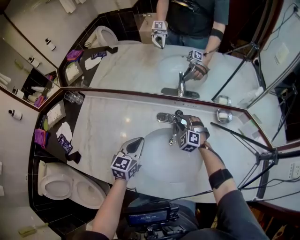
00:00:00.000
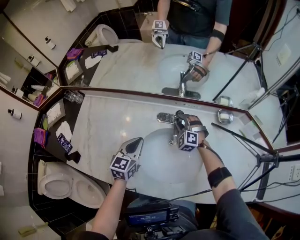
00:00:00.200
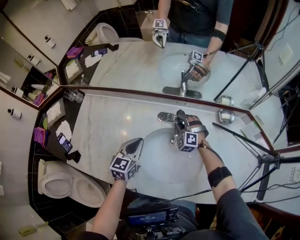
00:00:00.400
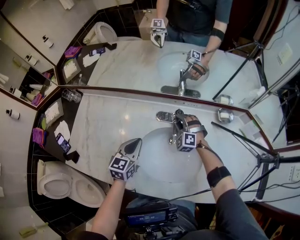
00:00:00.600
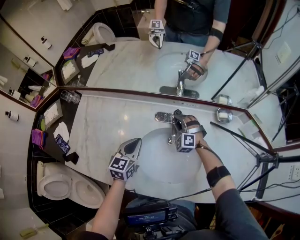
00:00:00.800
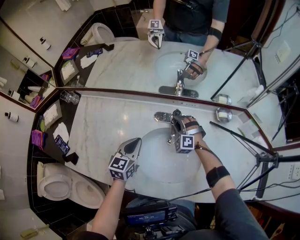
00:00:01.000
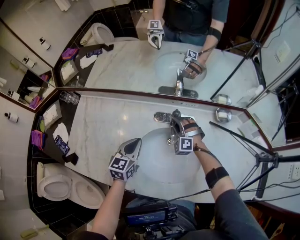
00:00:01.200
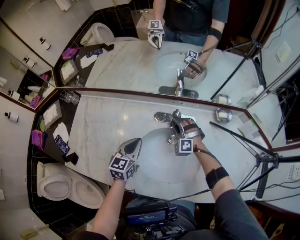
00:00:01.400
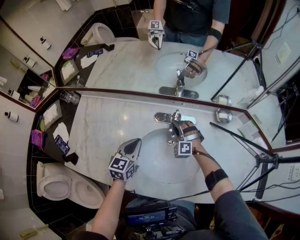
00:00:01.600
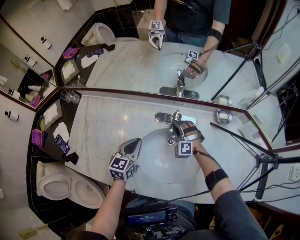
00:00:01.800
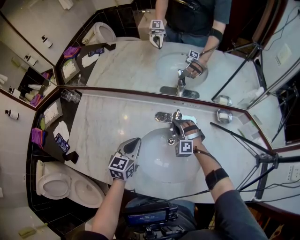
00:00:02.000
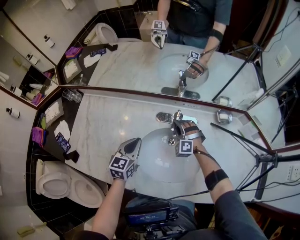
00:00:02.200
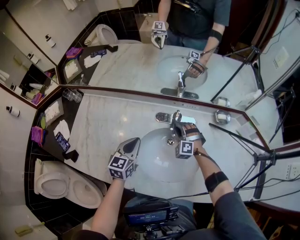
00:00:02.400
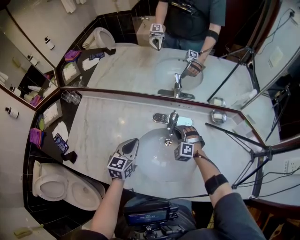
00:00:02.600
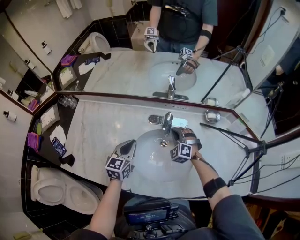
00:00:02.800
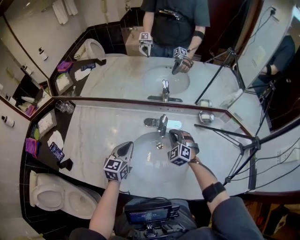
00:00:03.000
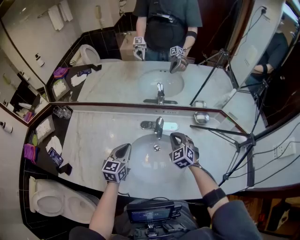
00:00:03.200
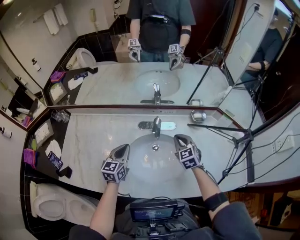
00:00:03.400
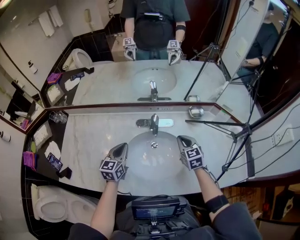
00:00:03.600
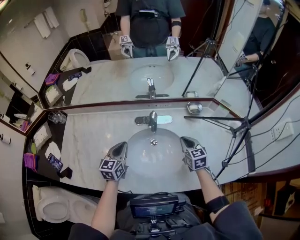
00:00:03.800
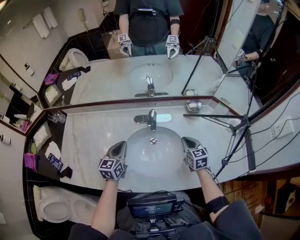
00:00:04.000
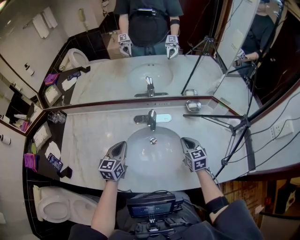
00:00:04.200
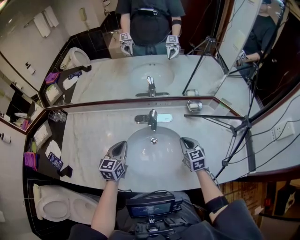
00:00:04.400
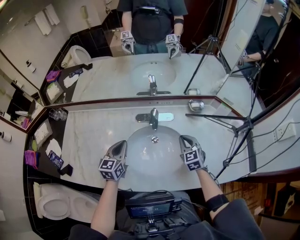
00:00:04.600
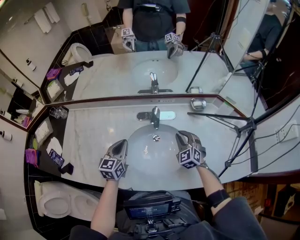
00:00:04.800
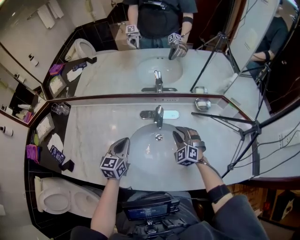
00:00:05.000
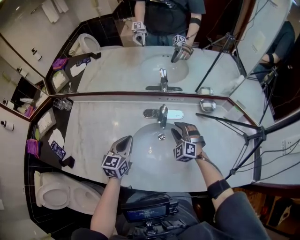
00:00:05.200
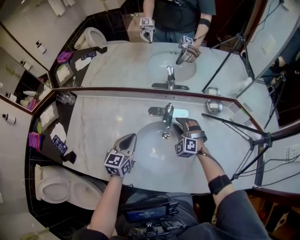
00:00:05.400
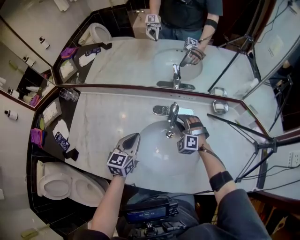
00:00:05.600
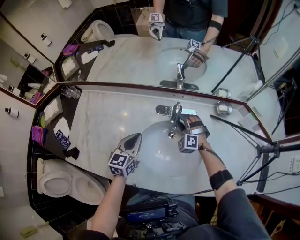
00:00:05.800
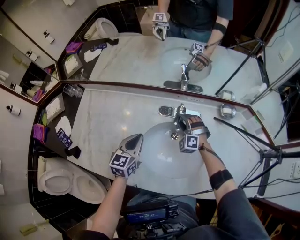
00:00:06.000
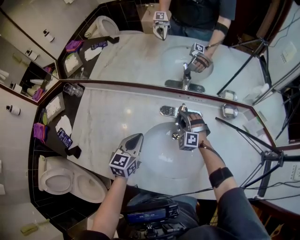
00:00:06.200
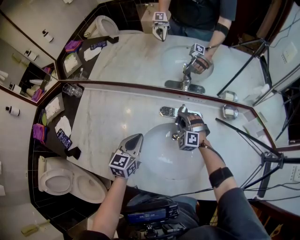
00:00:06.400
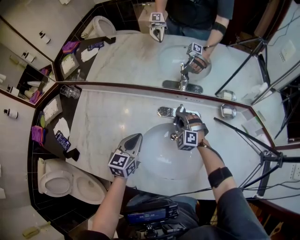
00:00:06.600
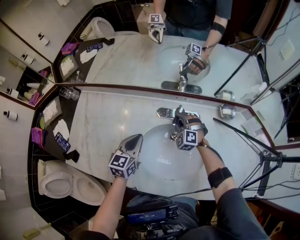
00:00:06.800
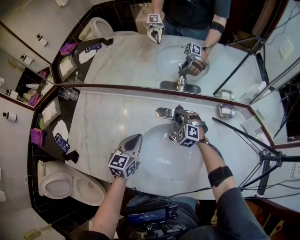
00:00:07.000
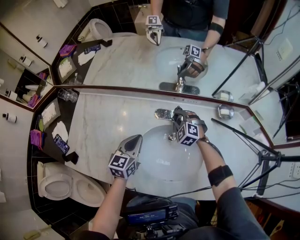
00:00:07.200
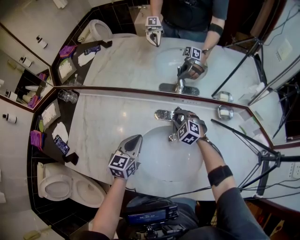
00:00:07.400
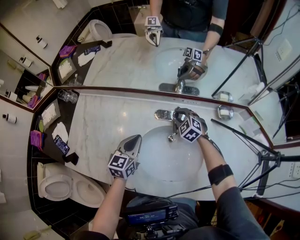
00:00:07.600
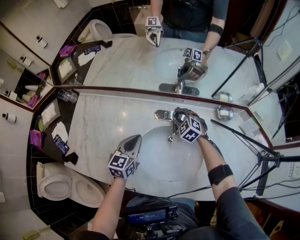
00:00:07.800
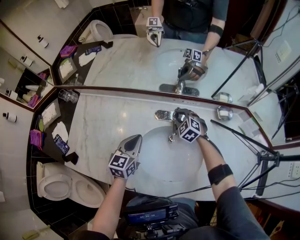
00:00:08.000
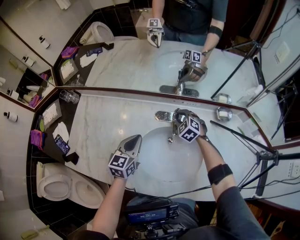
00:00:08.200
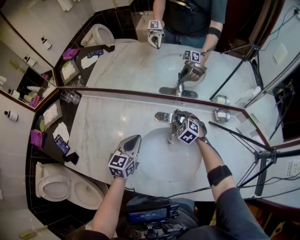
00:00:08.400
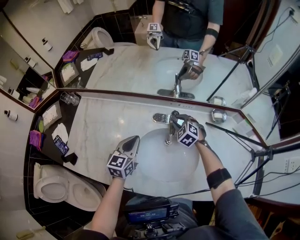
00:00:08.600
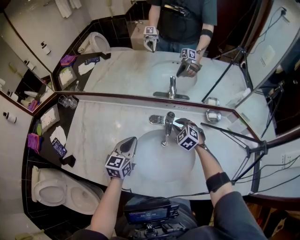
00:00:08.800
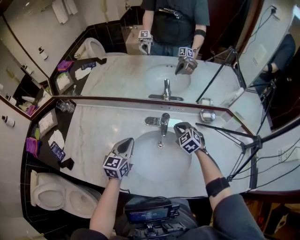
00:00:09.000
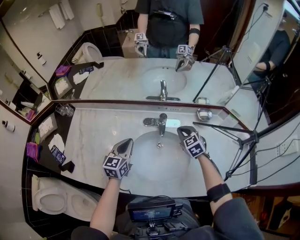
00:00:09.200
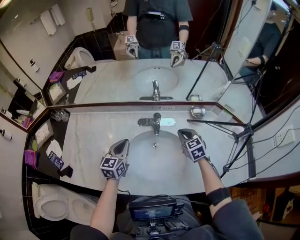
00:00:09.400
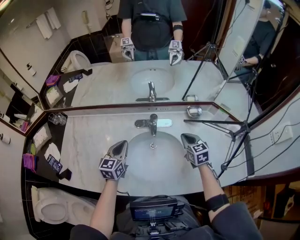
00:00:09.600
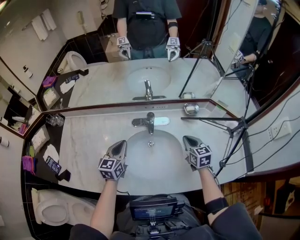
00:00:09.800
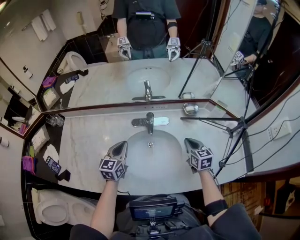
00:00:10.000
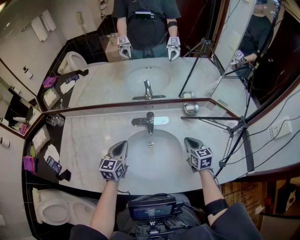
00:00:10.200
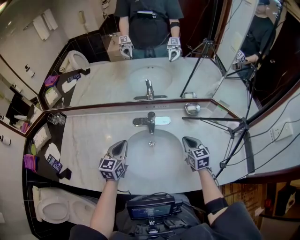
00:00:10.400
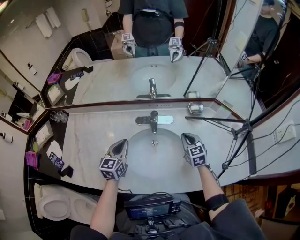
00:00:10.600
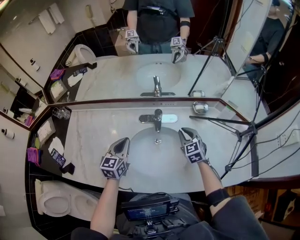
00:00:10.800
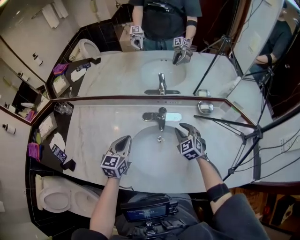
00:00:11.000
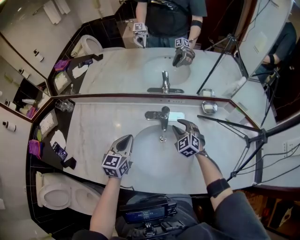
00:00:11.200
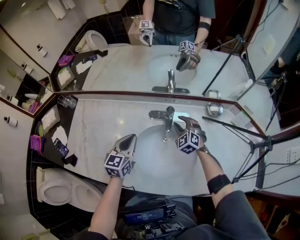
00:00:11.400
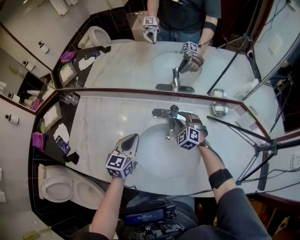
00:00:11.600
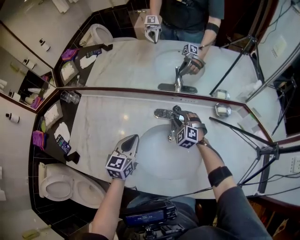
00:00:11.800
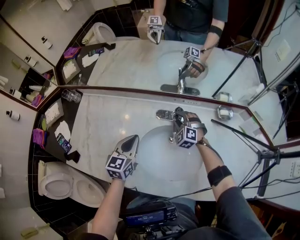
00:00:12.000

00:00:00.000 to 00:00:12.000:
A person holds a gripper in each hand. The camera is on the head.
00:00:00.000 to 00:00:01.600: The grippers make only small movements.
00:00:01.600 to 00:00:03.000: The right gripper shifts approximately 10 cm upward and backward, rotates roughly 30 degrees, and closes its fingers.
00:00:03.000 to 00:00:04.400: The right gripper heads to the right and backward, covering about 15 cm, and rolls clockwise, seen from behind, by approximately 50 degrees.
00:00:04.400 to 00:00:06.000: The right gripper goes roughly 25 cm to the left, forward and downward, rolls counterclockwise, seen from behind, by about 70 degrees, and opens its fingers.
00:00:06.000 to 00:00:07.600: The right gripper rotates some 30 degrees, and closes.
00:00:07.600 to 00:00:09.000: The left gripper ends up about 5 cm from where it was. Meanwhile the right gripper heads backward, upward and to the right, covering roughly 10 cm, and closes its fingers.
00:00:09.000 to 00:00:10.400: The right gripper travels to the right and backward by roughly 15 cm, and changes its angle by approximately 40 degrees.
00:00:10.400 to 00:00:12.000: The left gripper ends up some 5 cm from where it was. Meanwhile the right gripper is displaced to the left, forward and downward by about 25 cm, rotates around the line of its fingers by some 60 degrees, counterclockwise from behind, and opens its fingers.

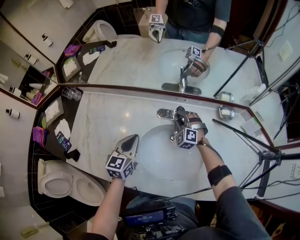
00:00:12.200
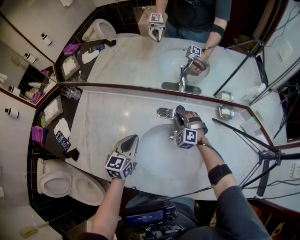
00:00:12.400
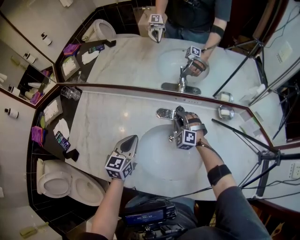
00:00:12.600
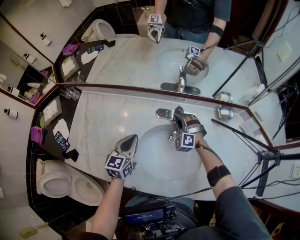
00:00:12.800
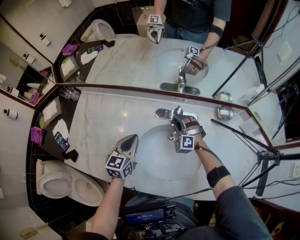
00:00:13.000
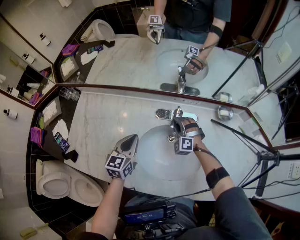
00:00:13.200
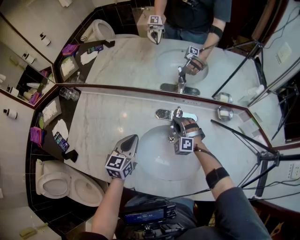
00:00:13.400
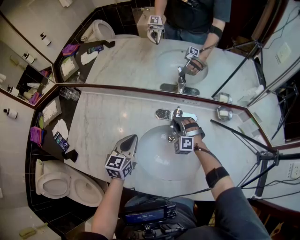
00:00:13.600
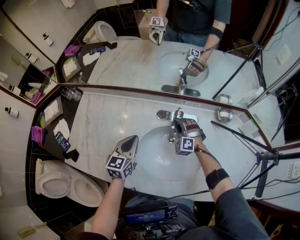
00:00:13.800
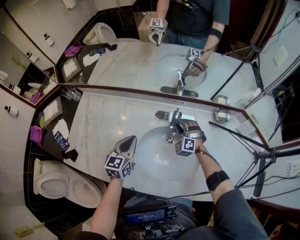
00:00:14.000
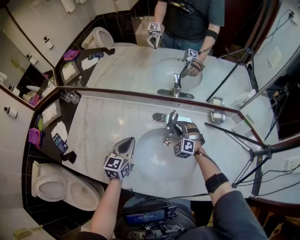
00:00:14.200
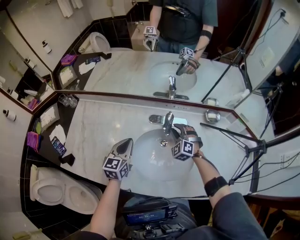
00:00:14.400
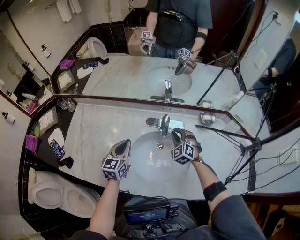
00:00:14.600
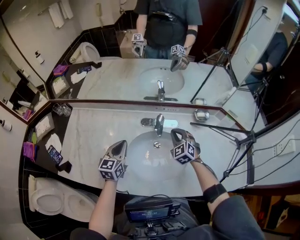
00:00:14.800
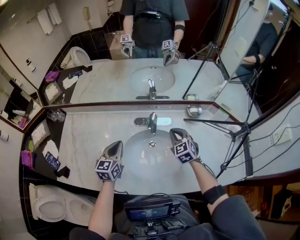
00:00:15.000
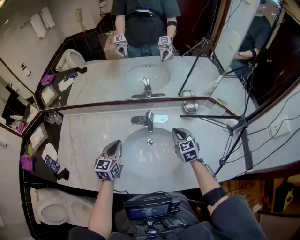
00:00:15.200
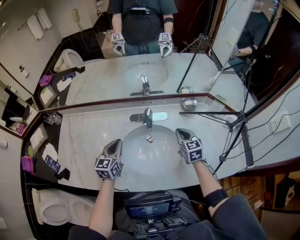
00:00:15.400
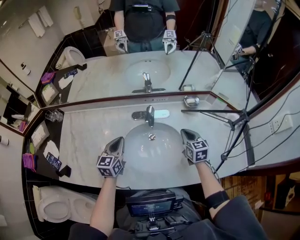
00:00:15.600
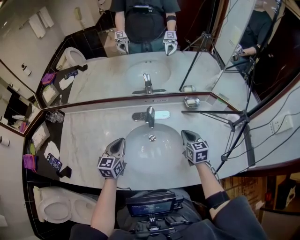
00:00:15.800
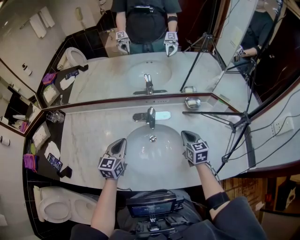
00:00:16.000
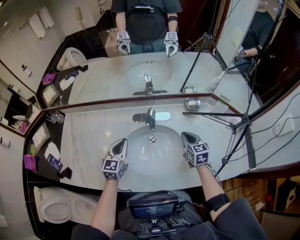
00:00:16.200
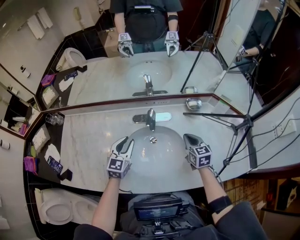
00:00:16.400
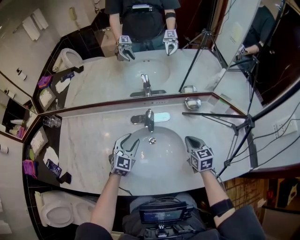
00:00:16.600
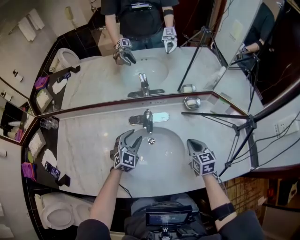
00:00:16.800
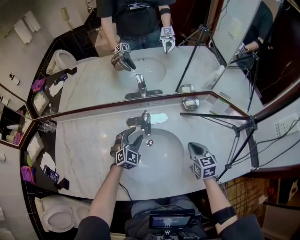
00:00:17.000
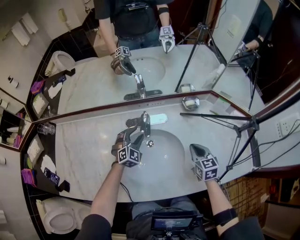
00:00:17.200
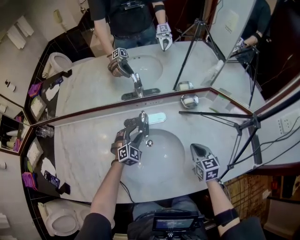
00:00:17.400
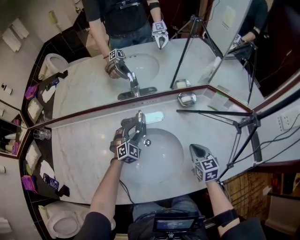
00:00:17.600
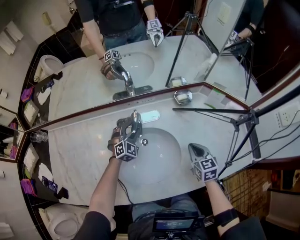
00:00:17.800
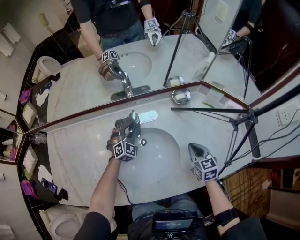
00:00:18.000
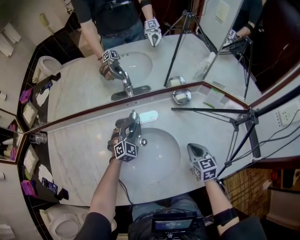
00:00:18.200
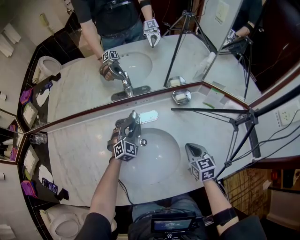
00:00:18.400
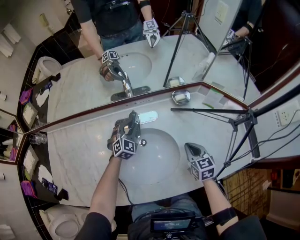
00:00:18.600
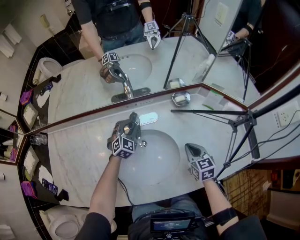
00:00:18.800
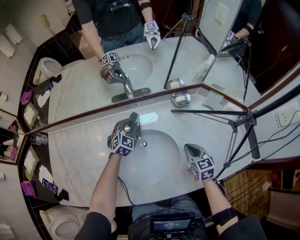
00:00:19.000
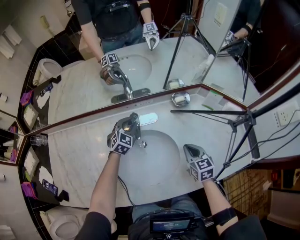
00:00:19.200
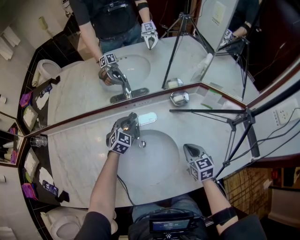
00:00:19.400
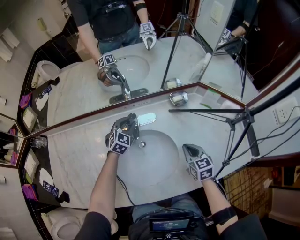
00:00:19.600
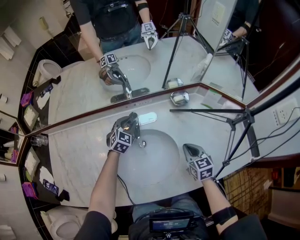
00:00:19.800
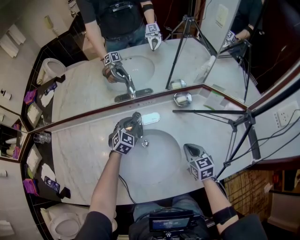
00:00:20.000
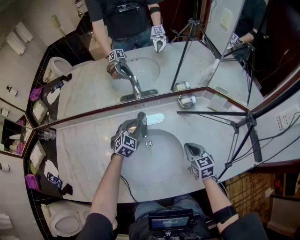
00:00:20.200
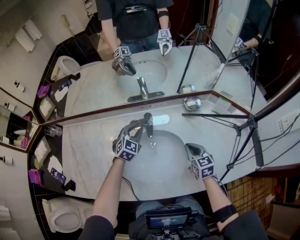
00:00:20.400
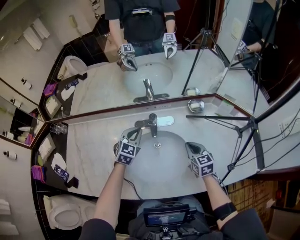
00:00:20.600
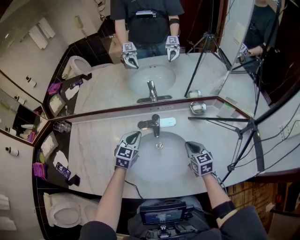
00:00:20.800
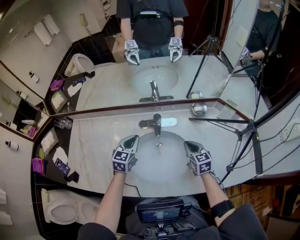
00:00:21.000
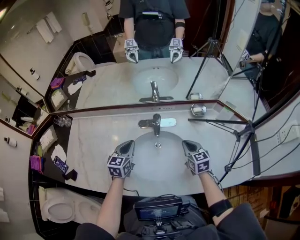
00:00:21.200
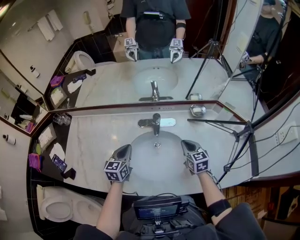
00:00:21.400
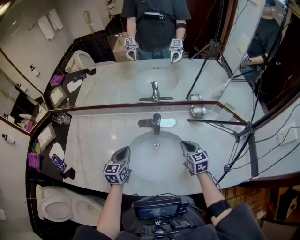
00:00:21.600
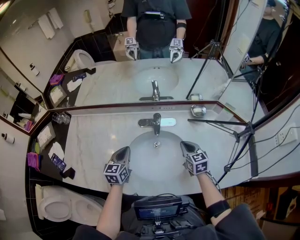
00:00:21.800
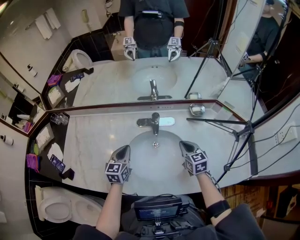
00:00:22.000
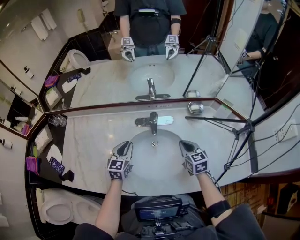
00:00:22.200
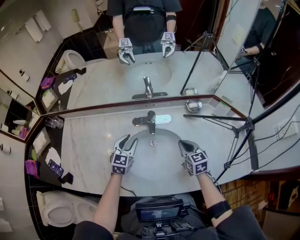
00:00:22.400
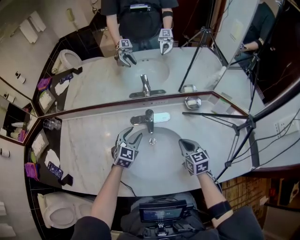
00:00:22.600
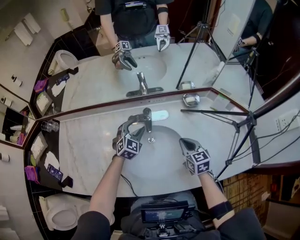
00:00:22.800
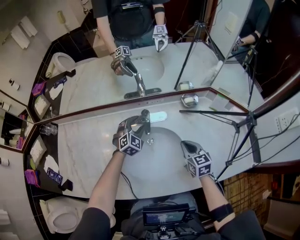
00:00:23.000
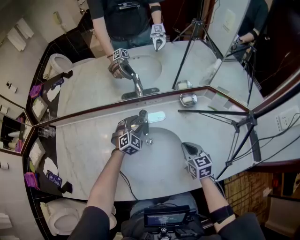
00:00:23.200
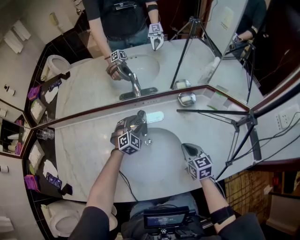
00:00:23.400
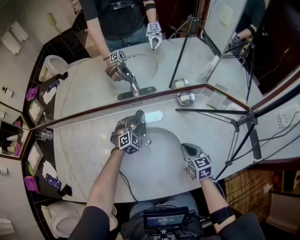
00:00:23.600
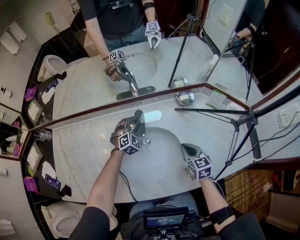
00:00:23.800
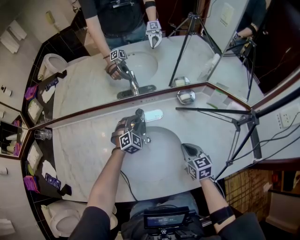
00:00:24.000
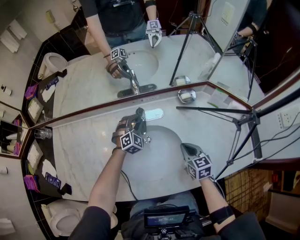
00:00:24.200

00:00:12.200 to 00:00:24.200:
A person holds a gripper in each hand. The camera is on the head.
00:00:12.200 to 00:00:13.800: The grippers make only small movements.
00:00:13.800 to 00:00:15.200: The right gripper goes some 20 cm upward, to the right and backward, rolls clockwise, seen from behind, by some 60 degrees, and closes its fingers.
00:00:15.200 to 00:00:16.600: Both grippers move to the right, approximately 10 cm. The left gripper rotates about 30 degrees, and opens up.
00:00:16.600 to 00:00:18.200: The right gripper goes some 10 cm to the right and downward, while the left gripper travels forward, downward and to the right by roughly 20 cm, and rotates approximately 20 degrees.
00:00:18.200 to 00:00:19.800: The grippers stay close to where they were, moving slightly.
00:00:19.800 to 00:00:21.200: The right gripper heads to the left, covering about 10 cm; the left gripper shifts approximately 25 cm backward, to the left and upward, rotates roughly 40 degrees, and closes its fingers.
00:00:21.200 to 00:00:22.600: The left gripper goes some 10 cm to the right and forward, turns by about 30 degrees, and opens its fingers.
00:00:22.600 to 00:00:24.200: The right gripper moves approximately 5 cm. Meanwhile the left gripper is displaced forward, downward and to the right by approximately 15 cm, rotates roughly 30 degrees, and closes up.
